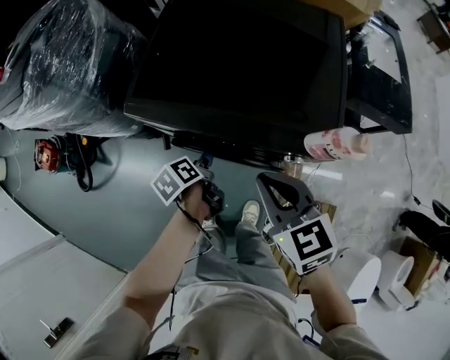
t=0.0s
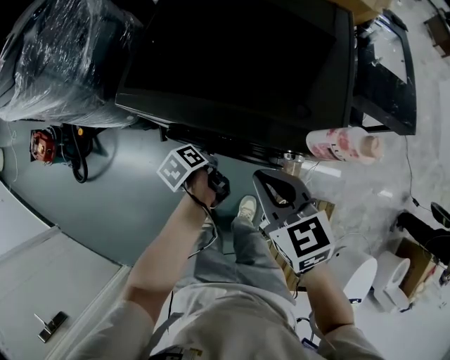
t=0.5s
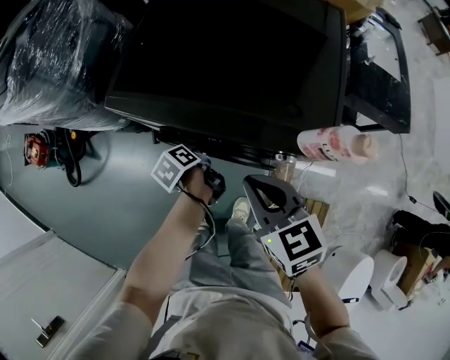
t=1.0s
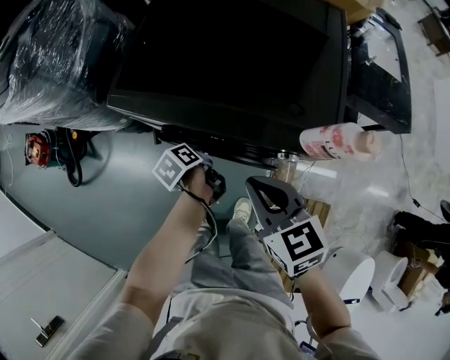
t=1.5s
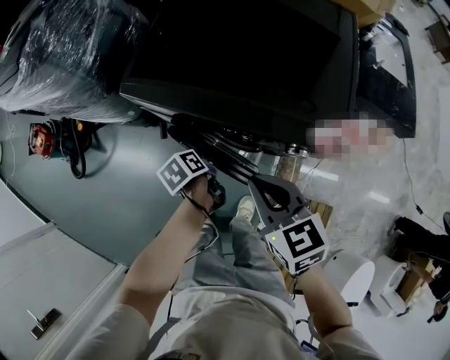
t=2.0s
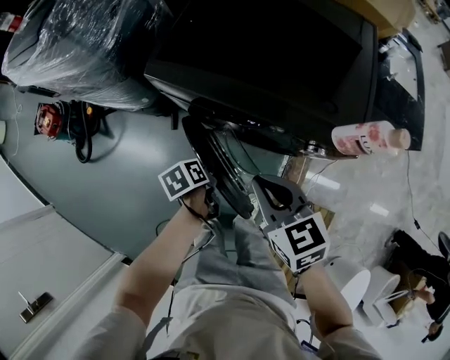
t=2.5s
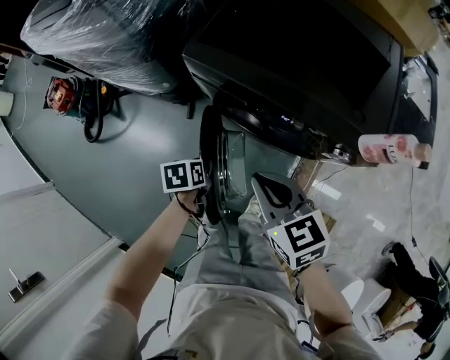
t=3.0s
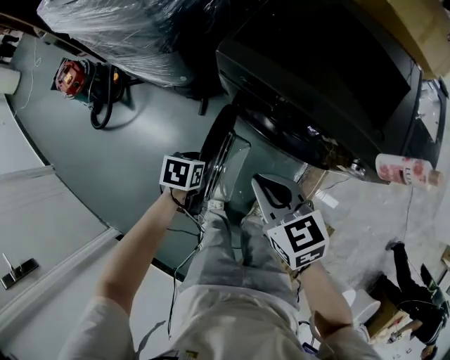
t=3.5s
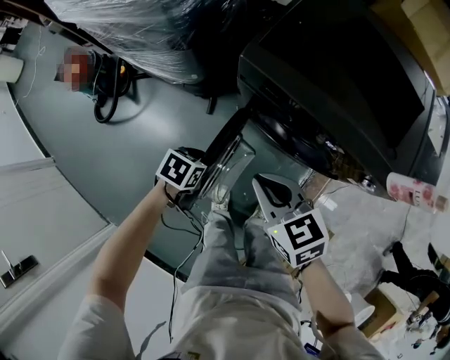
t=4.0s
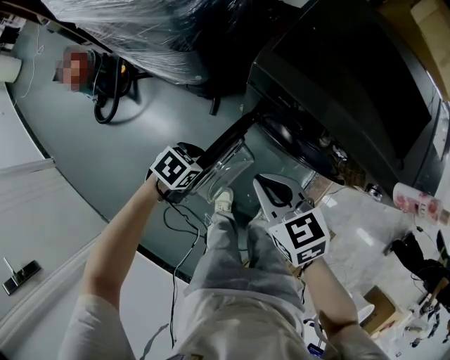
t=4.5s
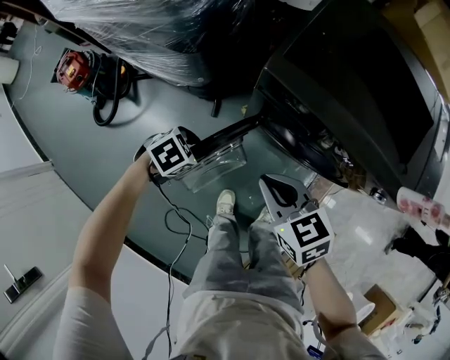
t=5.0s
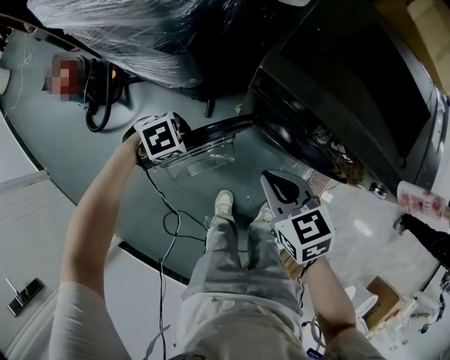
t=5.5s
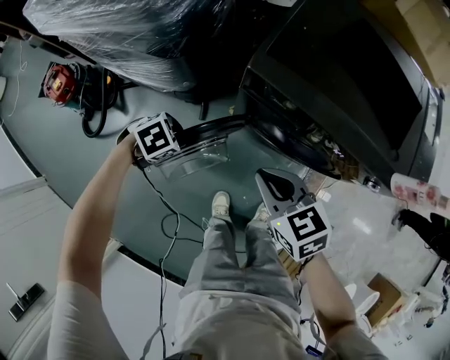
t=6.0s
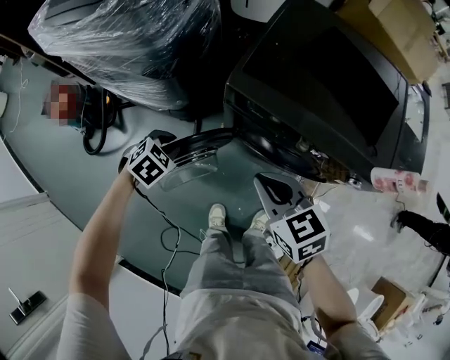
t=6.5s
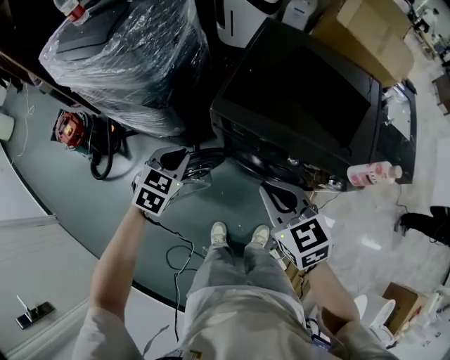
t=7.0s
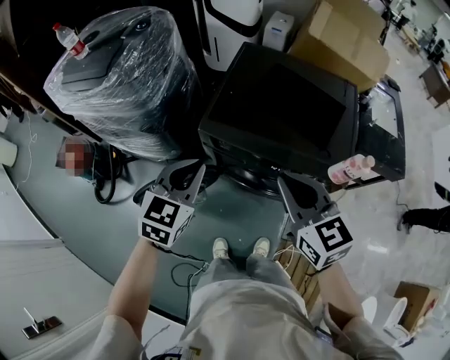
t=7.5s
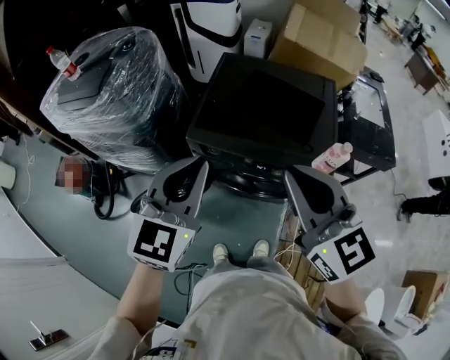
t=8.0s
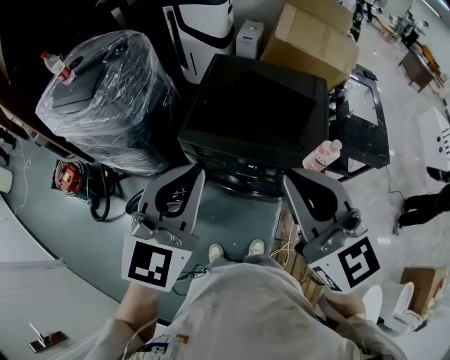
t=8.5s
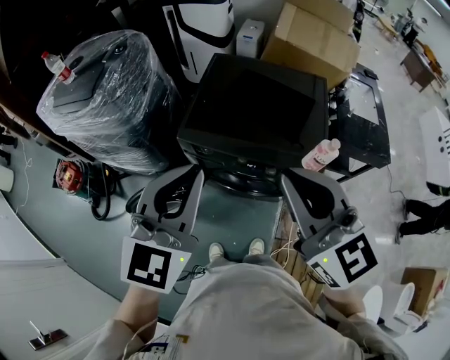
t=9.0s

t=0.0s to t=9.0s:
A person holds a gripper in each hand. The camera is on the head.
t=0.0s to t=2.0s: Both grippers travel together downward, about 5 cm.
t=2.0s to t=4.5s: The left gripper shifts by roughly 25 cm, and rotates around the line of its fingers by some 60 degrees, clockwise from behind. Meanwhile the right gripper shifts by approximately 25 cm, and turns by approximately 20 degrees.
t=4.5s to t=7.0s: The left gripper heads upward, covering some 20 cm, changes its angle by some 40 degrees, and closes up; the right gripper goes approximately 15 cm upward.
t=7.0s to t=9.0s: Both grippers move upward and to the right, some 35 cm. The right gripper changes its angle by roughly 30 degrees. Meanwhile the left gripper tips its fingers upward by about 40 degrees.

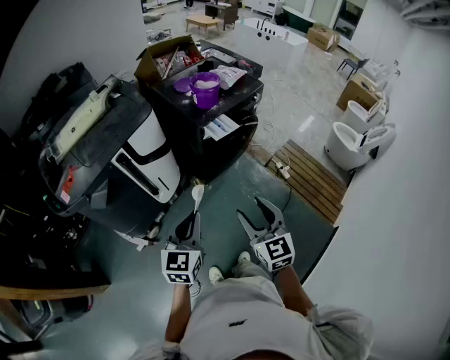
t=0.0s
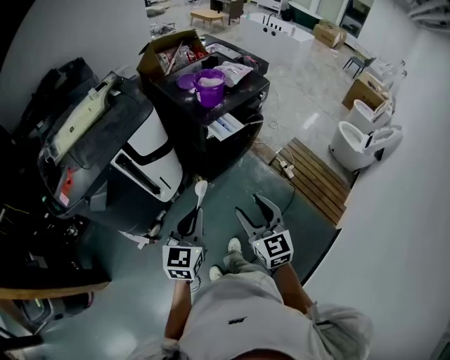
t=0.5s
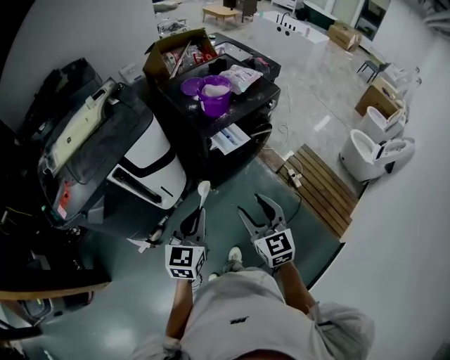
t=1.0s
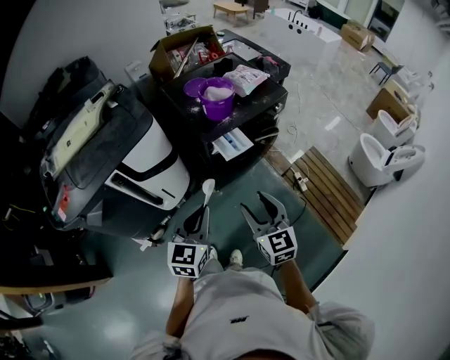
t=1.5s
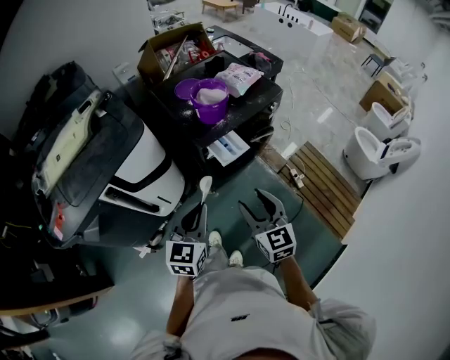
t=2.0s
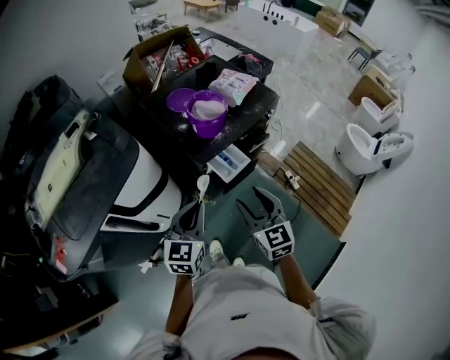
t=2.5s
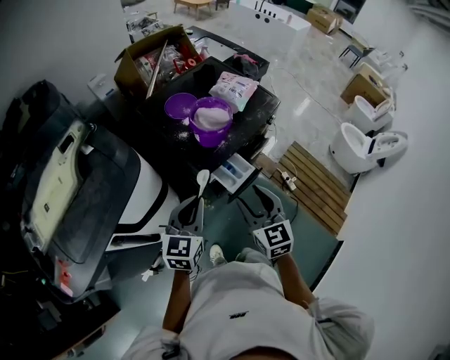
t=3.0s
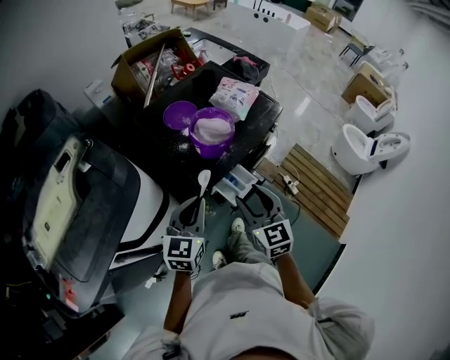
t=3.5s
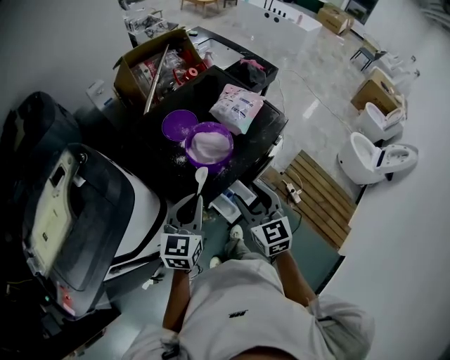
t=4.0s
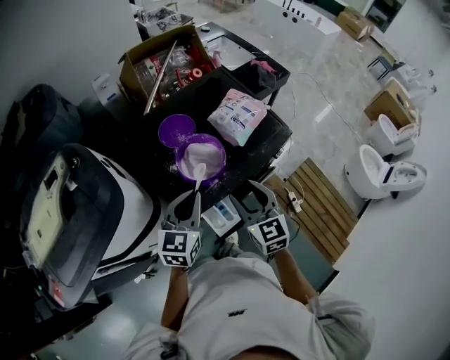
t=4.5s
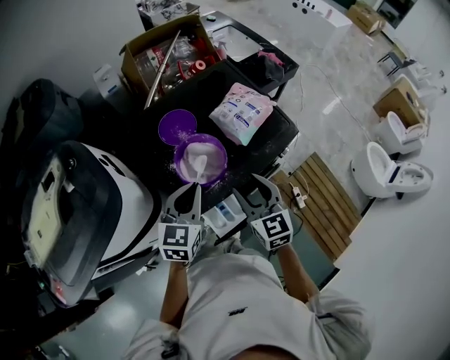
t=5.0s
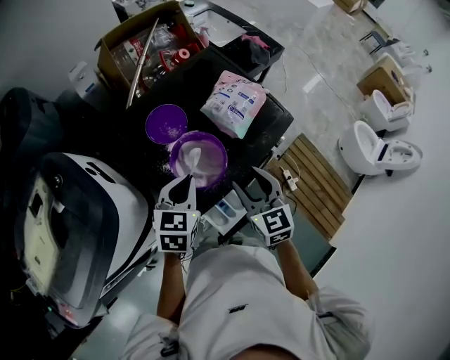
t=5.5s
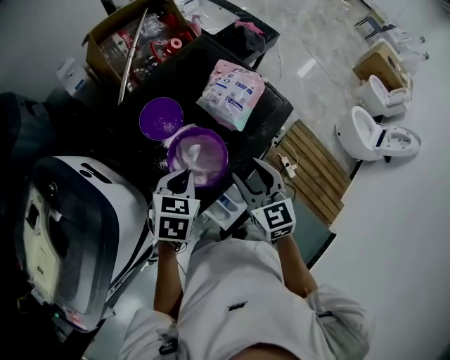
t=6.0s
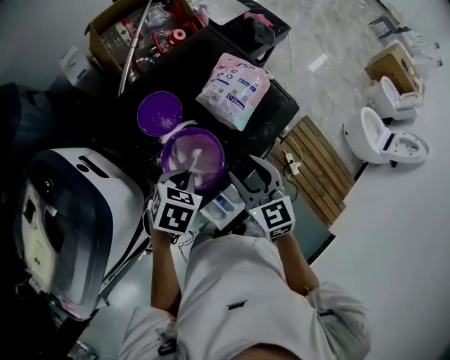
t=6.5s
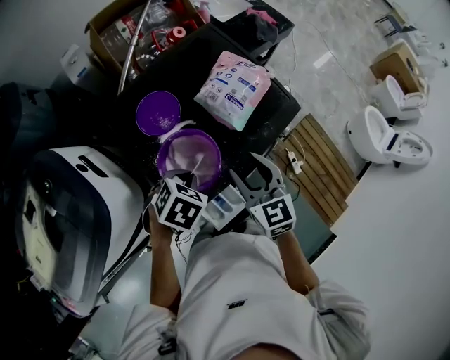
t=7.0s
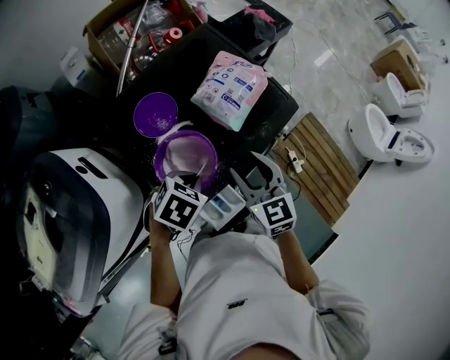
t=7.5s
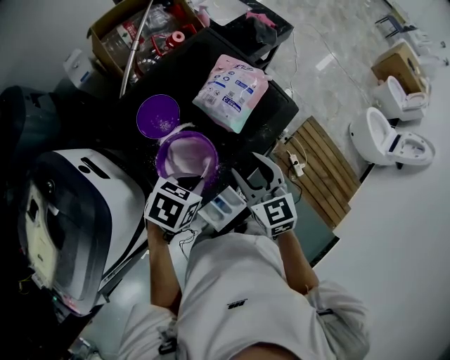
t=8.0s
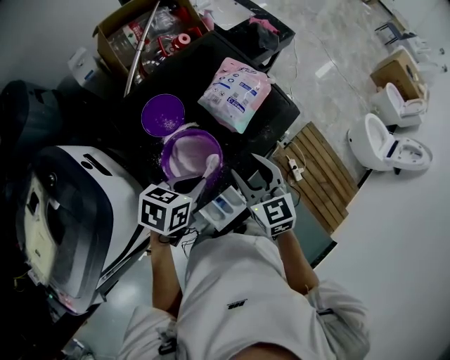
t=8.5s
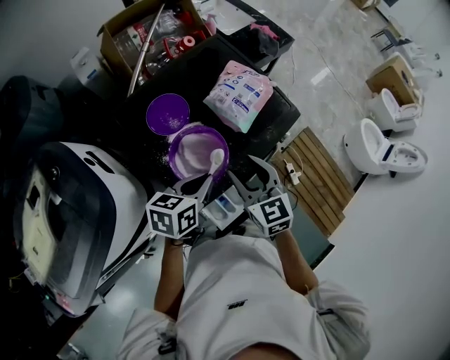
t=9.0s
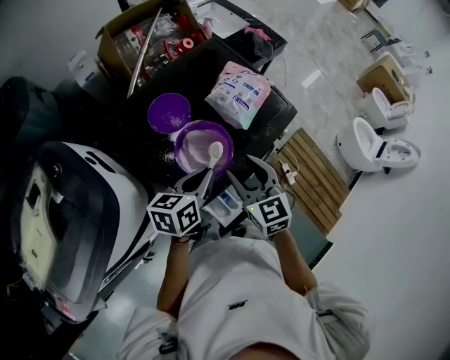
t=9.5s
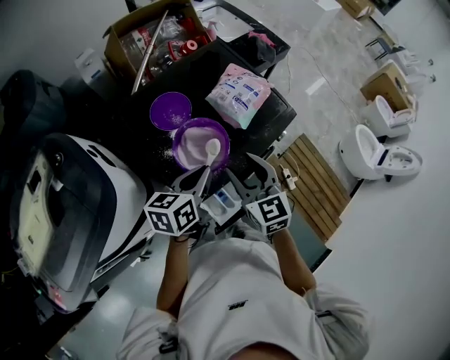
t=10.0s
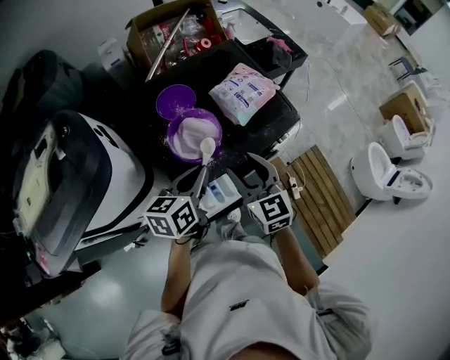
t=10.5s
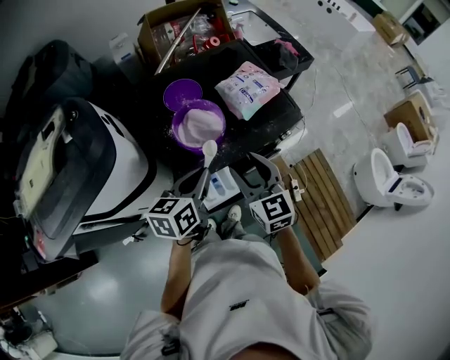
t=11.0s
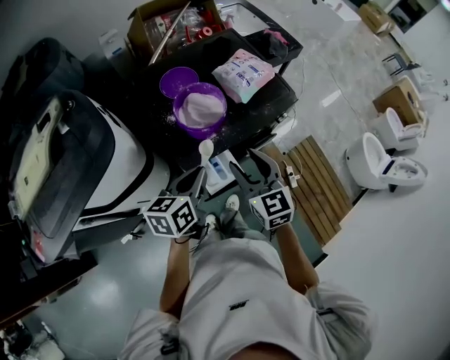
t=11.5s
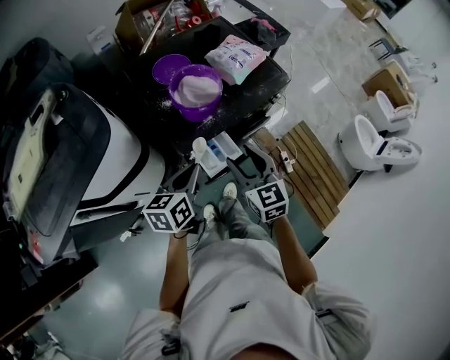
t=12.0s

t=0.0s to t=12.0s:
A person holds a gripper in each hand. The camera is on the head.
t=0.0s to t=2.0s: Both grippers move forward, about 25 cm.
t=2.0s to t=4.0s: The grippers both shift forward by about 30 cm.
t=4.0s to t=6.0s: The left gripper travels forward and downward by about 20 cm, and angles its fingers downward, by approximately 30 degrees; the right gripper moves forward, roughly 15 cm.
t=6.0s to t=8.0s: The left gripper heads to the right, covering some 5 cm, and turns by some 20 degrees.
t=8.0s to t=10.0s: The left gripper moves roughly 5 cm, and tilts its fingers some 30 degrees upward, while the right gripper goes roughly 5 cm backward.
t=10.0s to t=12.0s: Both grippers travel together backward, some 20 cm.

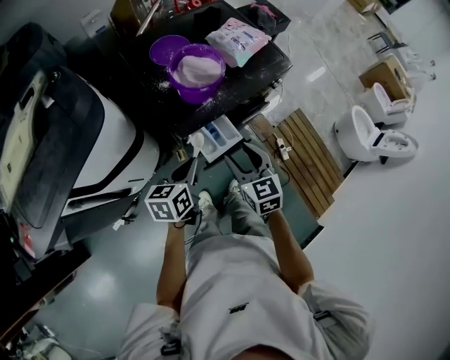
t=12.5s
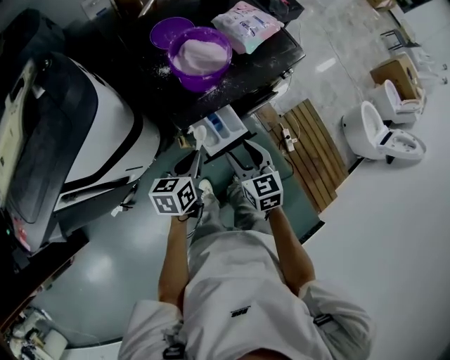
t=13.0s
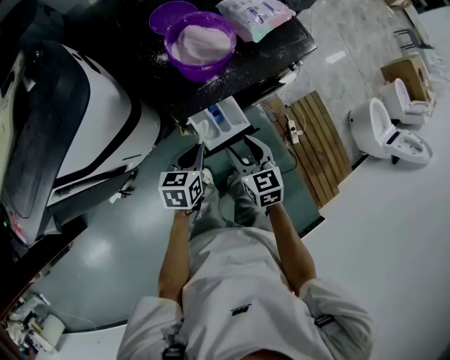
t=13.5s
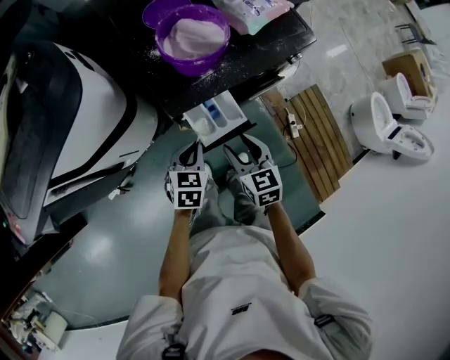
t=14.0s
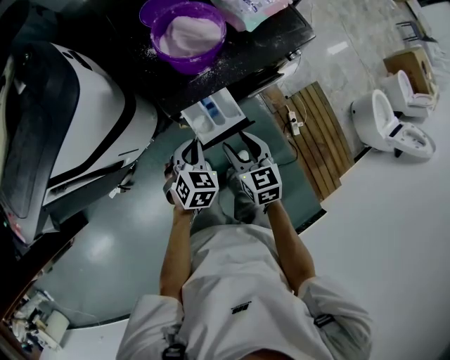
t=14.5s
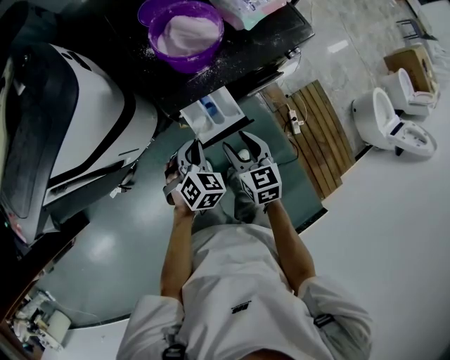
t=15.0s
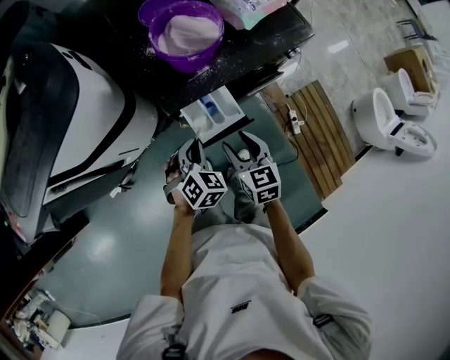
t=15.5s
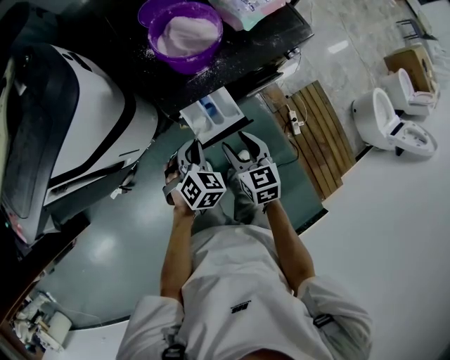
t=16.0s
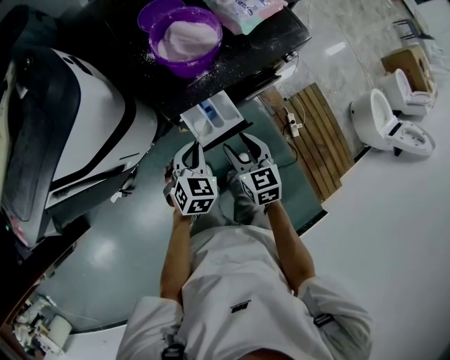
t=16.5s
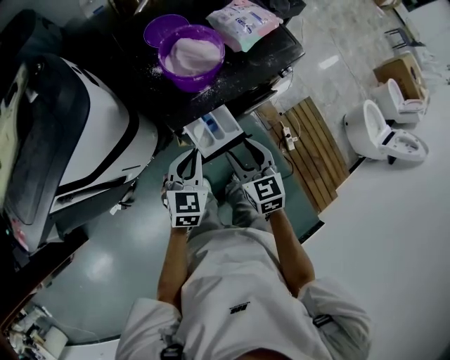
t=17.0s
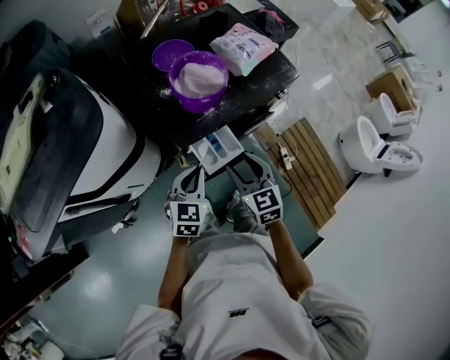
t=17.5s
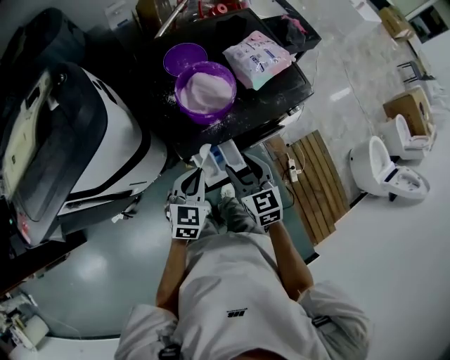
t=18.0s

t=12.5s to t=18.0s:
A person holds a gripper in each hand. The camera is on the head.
t=12.5s to t=14.5s: The grippers both shift downward by about 10 cm. The left gripper rotates about 50 degrees.
t=14.5s to t=16.0s: The grippers make only small movements.
t=16.0s to t=18.0s: Both grippers move upward and forward, roughly 10 cm. The left gripper swivels approximately 30 degrees.
